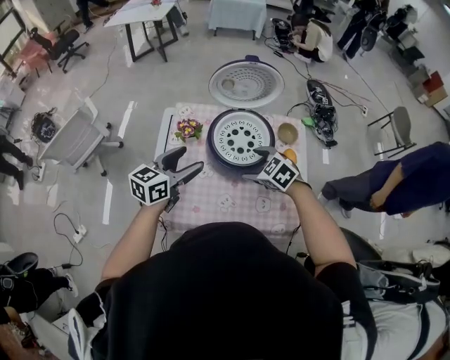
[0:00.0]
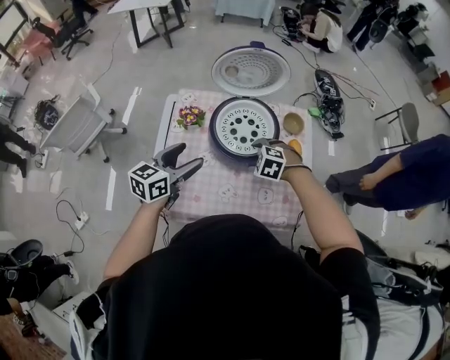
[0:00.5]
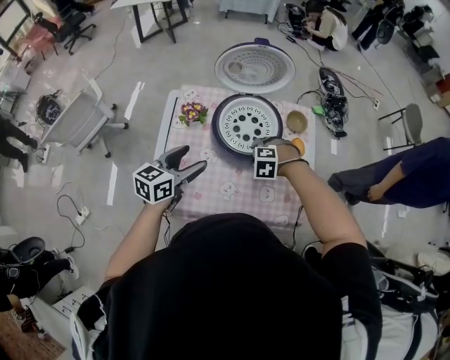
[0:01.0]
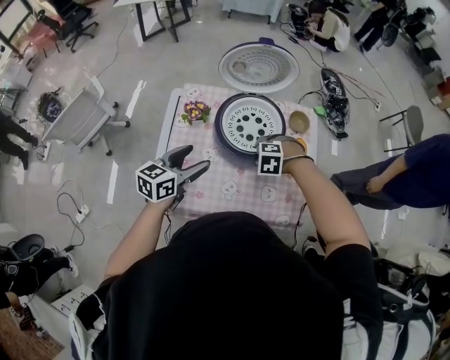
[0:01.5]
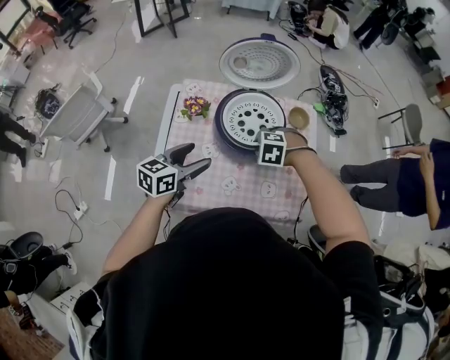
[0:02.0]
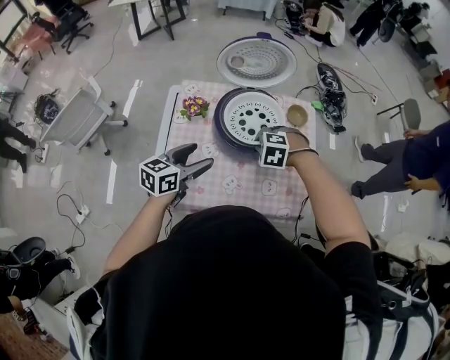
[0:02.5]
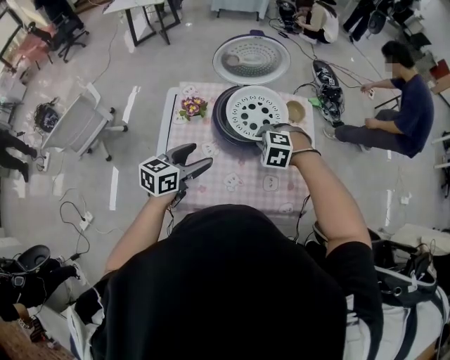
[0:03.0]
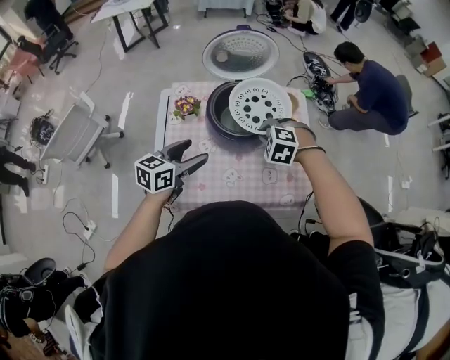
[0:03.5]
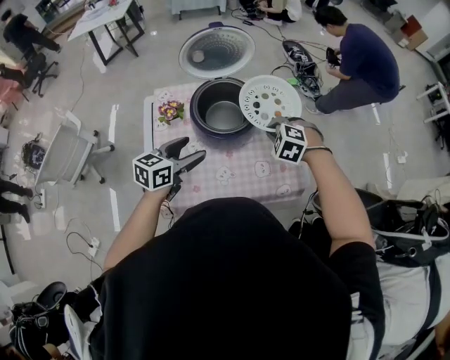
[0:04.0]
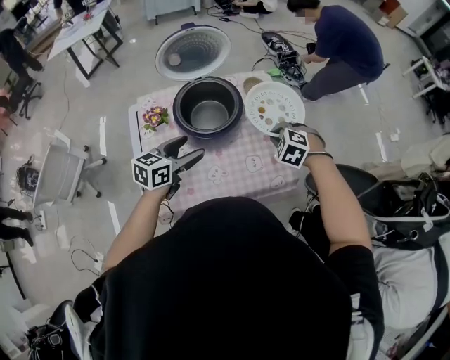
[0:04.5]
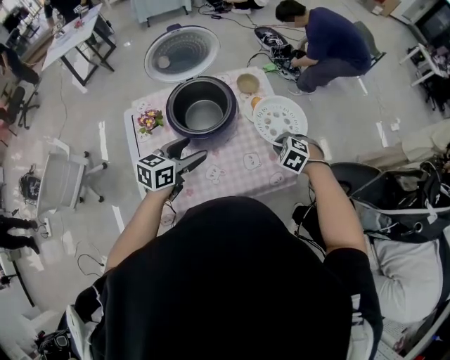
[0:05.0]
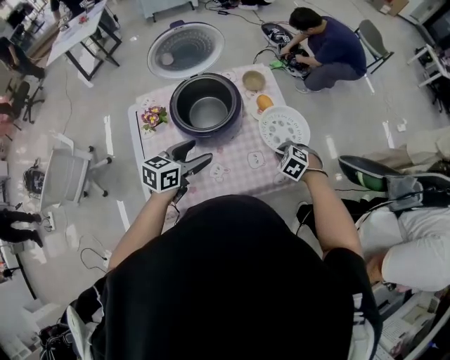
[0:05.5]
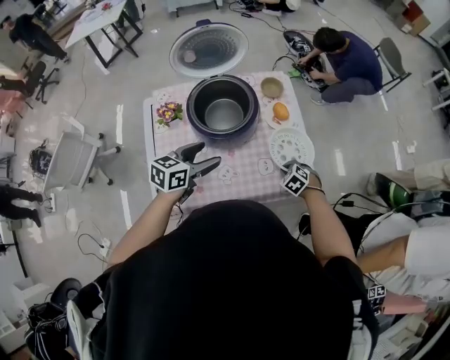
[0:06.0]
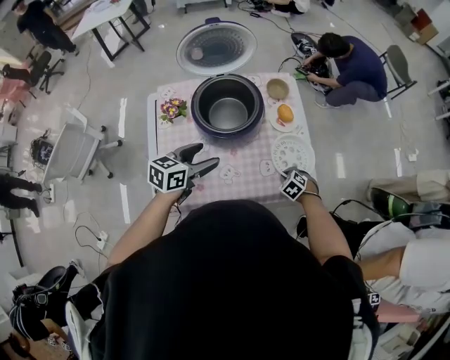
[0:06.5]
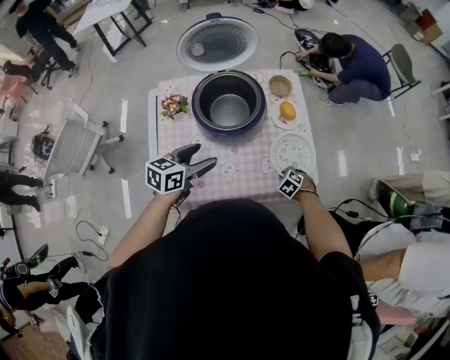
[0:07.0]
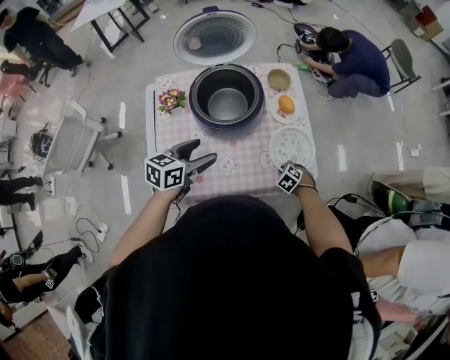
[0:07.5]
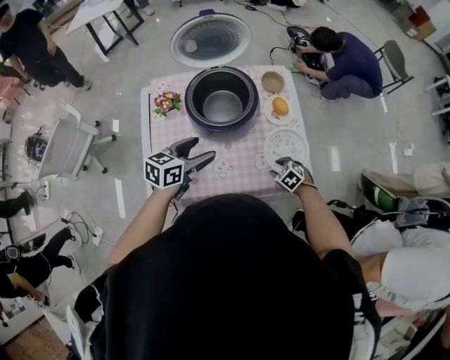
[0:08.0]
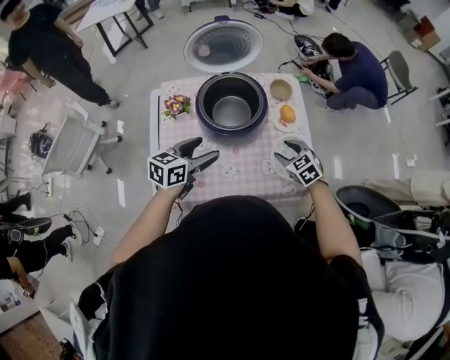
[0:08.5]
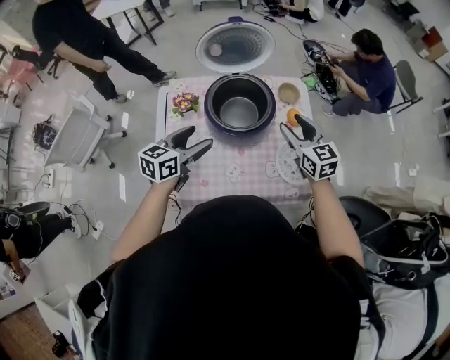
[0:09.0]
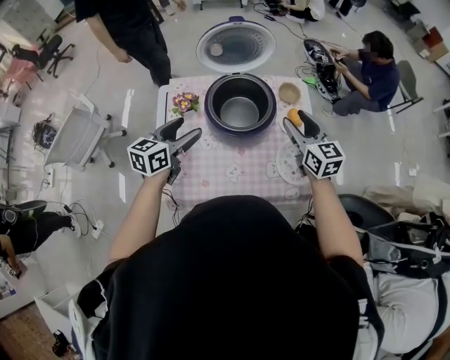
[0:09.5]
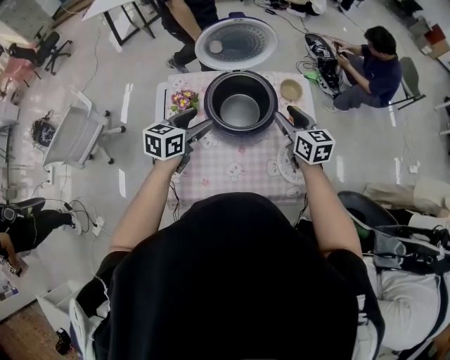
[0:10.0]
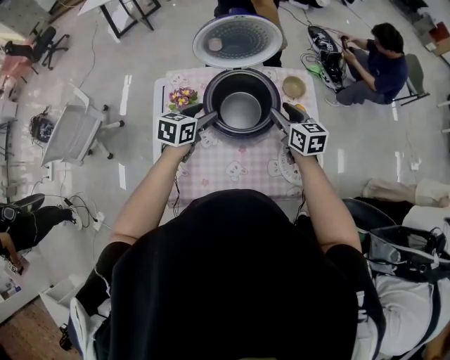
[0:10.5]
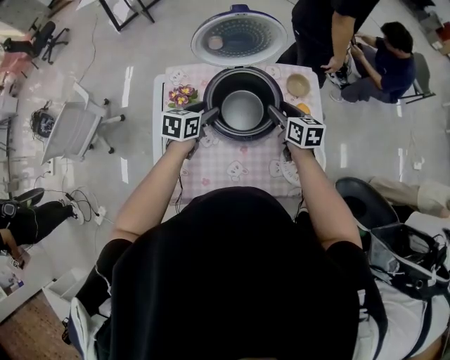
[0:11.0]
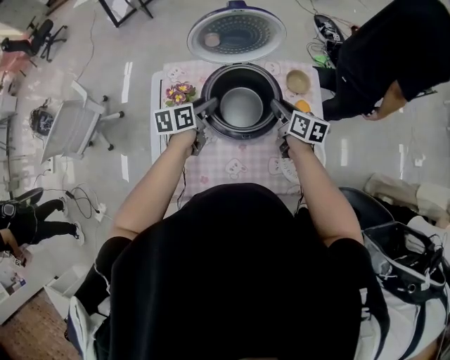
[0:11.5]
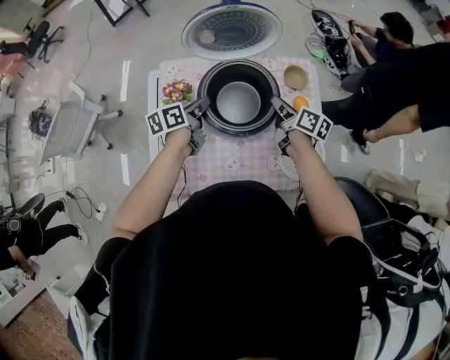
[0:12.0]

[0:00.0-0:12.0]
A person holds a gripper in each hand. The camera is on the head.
0:00.0 to 0:02.0: The grippers both shift downward by roughly 5 cm. The right gripper turns by some 40 degrees, and closes its fingers.
0:02.0 to 0:04.0: The right gripper ends up approximately 10 cm from where it was, and swivels approximately 30 degrees.
0:04.0 to 0:06.0: The left gripper is displaced to the right by roughly 5 cm, while the right gripper is displaced downward, to the right and backward by approximately 25 cm, and swivels about 30 degrees.
0:06.0 to 0:08.0: The right gripper moves about 10 cm downward and comes back.
0:08.0 to 0:10.0: The left gripper is displaced forward and to the left by roughly 10 cm. The right gripper moves upward and forward, about 30 cm, and angles its fingers upward, by about 50 degrees.
0:10.0 to 0:12.0: The grippers both shift downward and forward by about 10 cm. The right gripper twists approximately 40 degrees clockwise, seen from behind, and closes, while the left gripper swivels about 40 degrees, and closes.

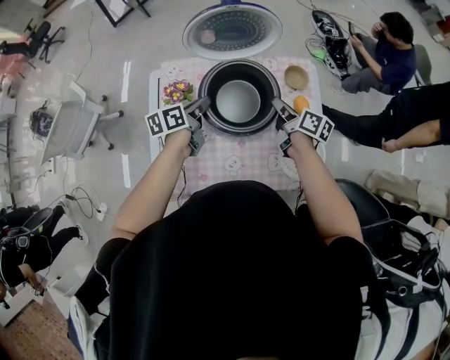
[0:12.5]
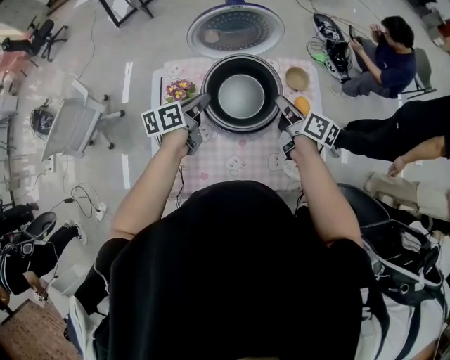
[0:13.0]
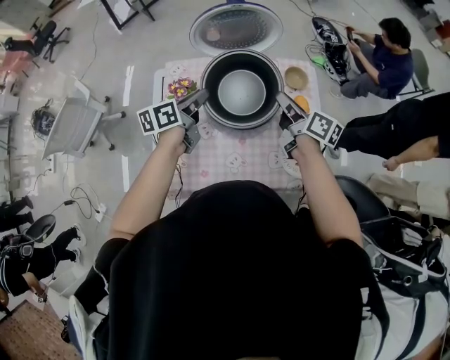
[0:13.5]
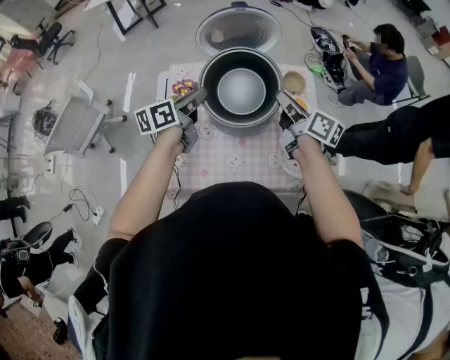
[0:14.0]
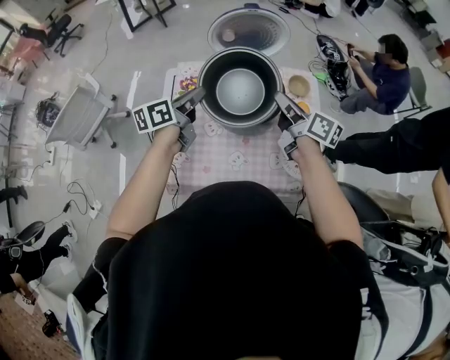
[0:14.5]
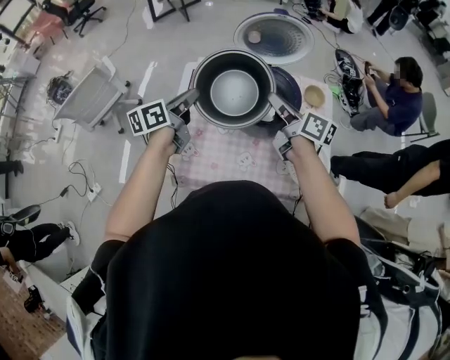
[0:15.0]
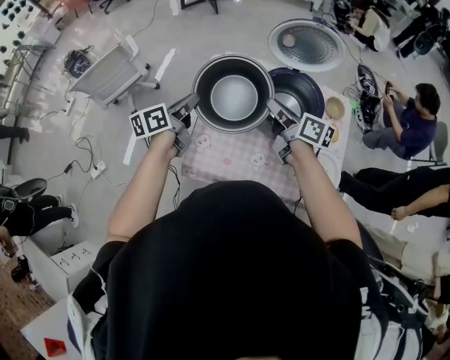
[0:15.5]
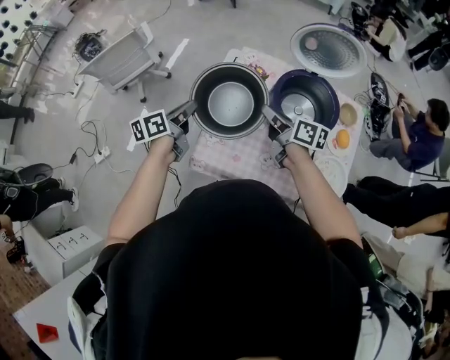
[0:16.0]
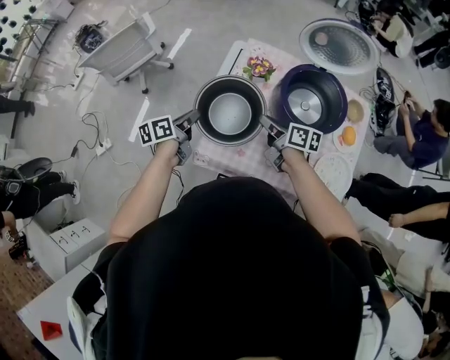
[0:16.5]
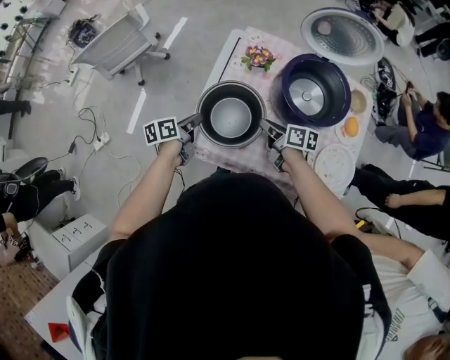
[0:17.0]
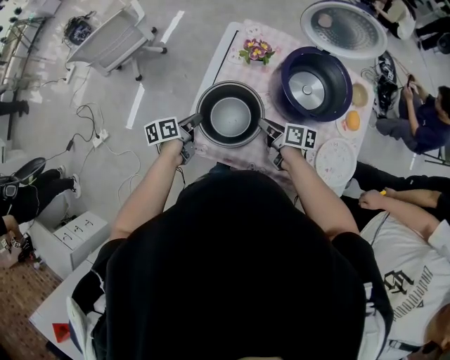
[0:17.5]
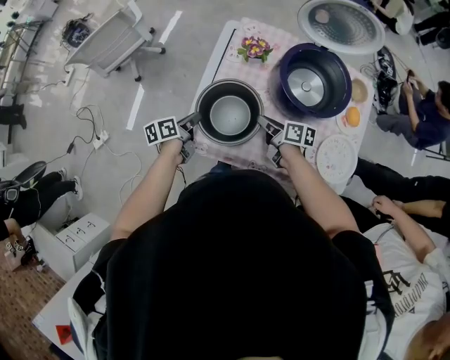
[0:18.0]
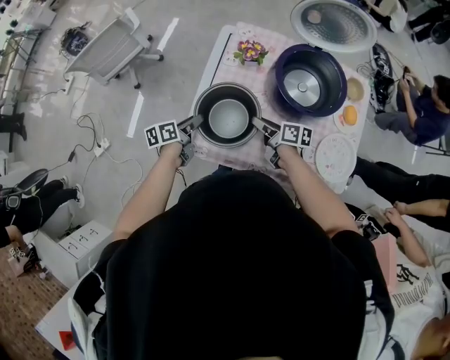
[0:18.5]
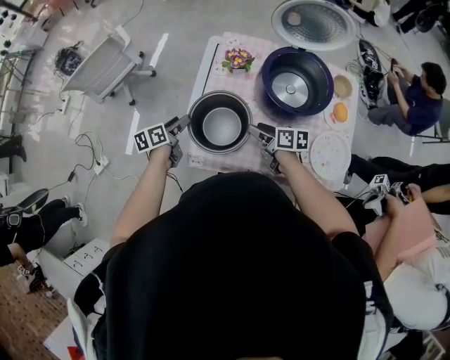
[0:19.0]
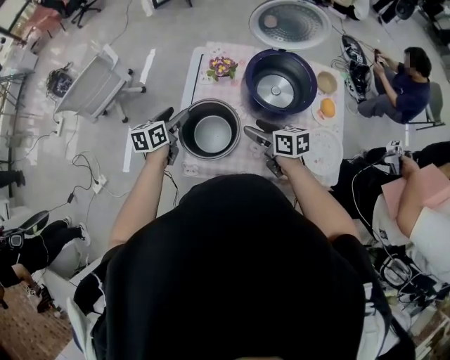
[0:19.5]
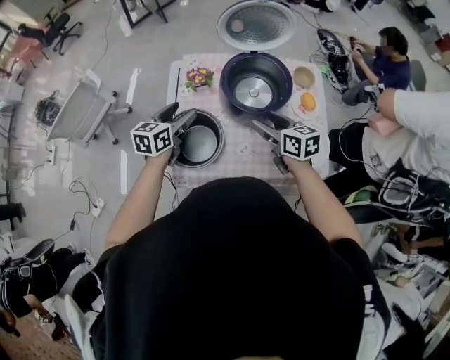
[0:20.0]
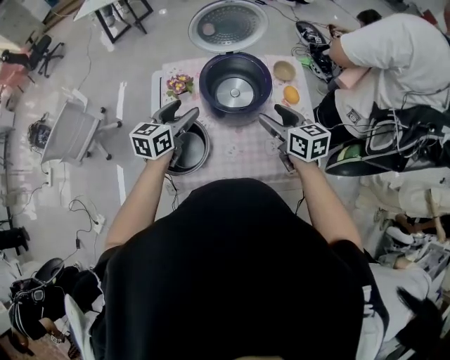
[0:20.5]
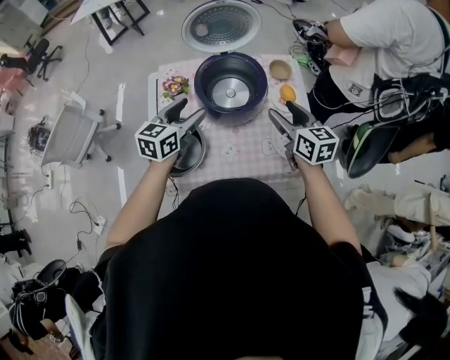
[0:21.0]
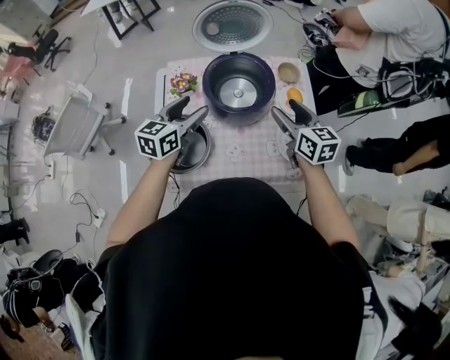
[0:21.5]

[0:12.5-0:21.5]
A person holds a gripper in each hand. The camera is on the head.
0:12.5 to 0:14.5: The two grippers go about 15 cm upward and backward.
0:14.5 to 0:17.0: The left gripper ends up roughly 35 cm from where it was, and changes its angle by some 30 degrees. Meanwhile the right gripper changes place by approximately 30 cm, and turns by about 40 degrees.
0:17.0 to 0:19.5: The left gripper moves upward and forward, approximately 10 cm, rotates some 30 degrees, and opens up; the right gripper travels upward by about 5 cm, and opens its fingers.
0:19.5 to 0:21.5: The left gripper moves some 25 cm, and swivels roughly 30 degrees; the right gripper ends up roughly 25 cm from where it was, and turns by roughly 40 degrees.

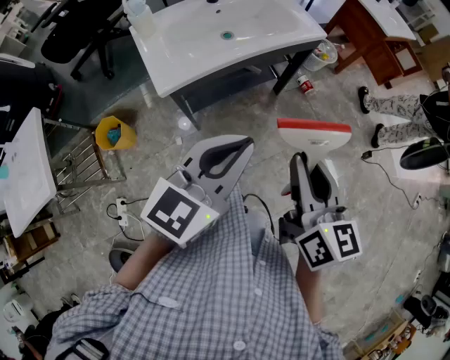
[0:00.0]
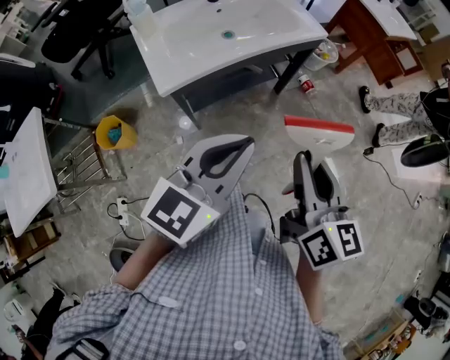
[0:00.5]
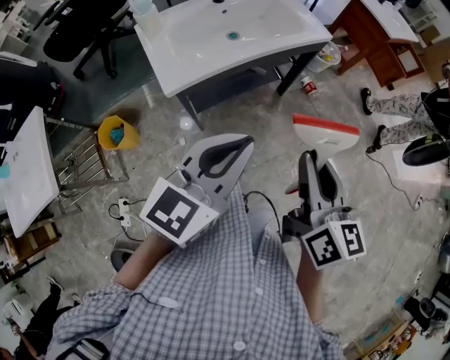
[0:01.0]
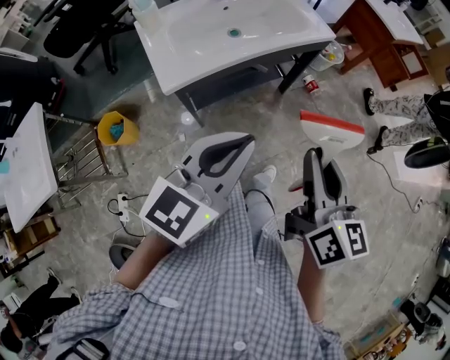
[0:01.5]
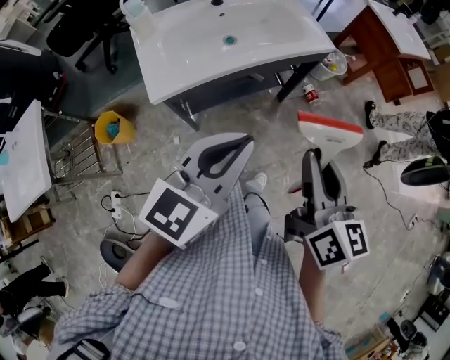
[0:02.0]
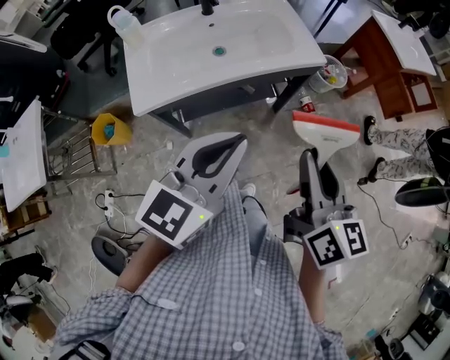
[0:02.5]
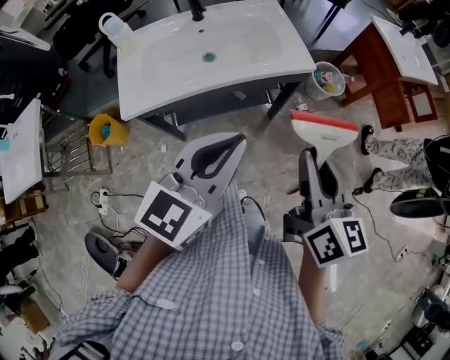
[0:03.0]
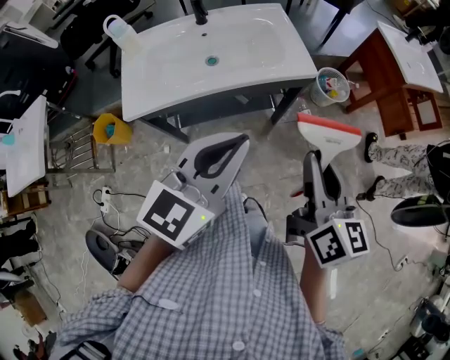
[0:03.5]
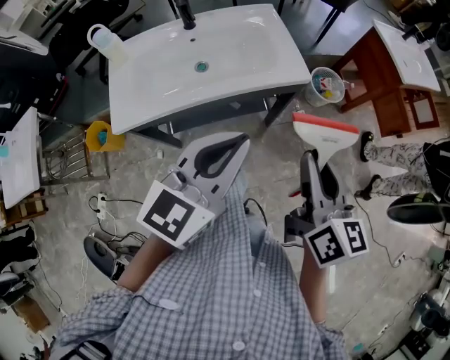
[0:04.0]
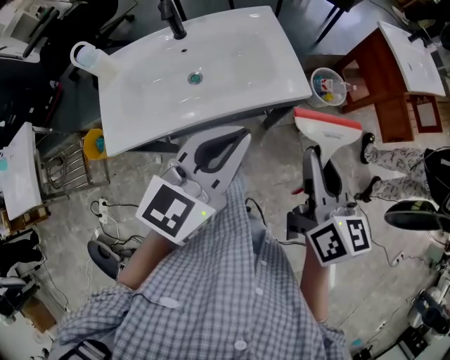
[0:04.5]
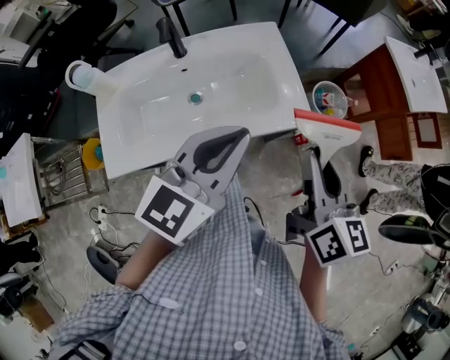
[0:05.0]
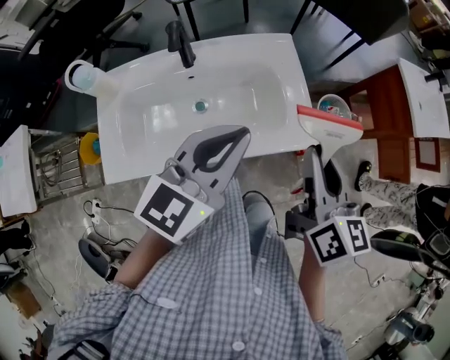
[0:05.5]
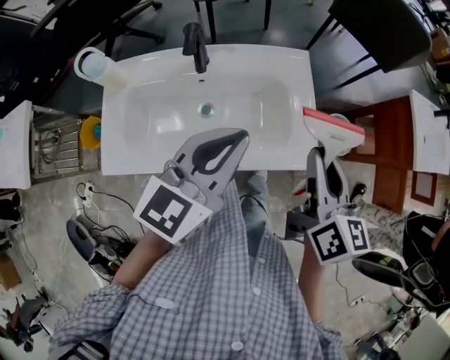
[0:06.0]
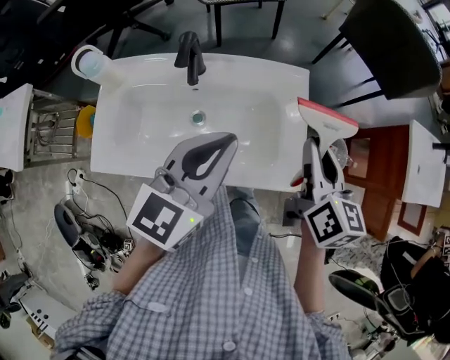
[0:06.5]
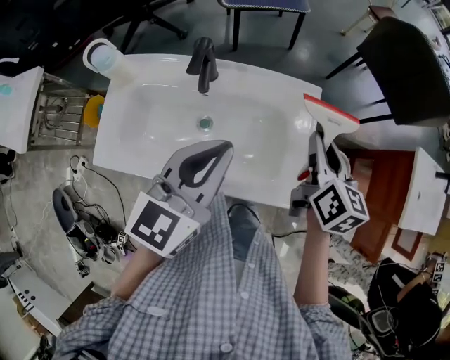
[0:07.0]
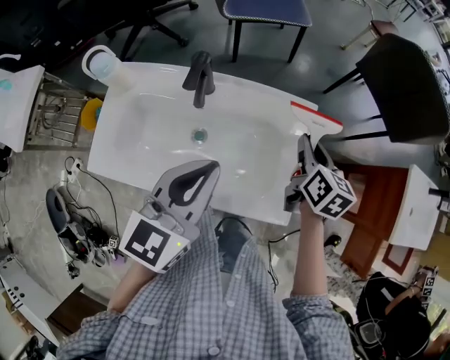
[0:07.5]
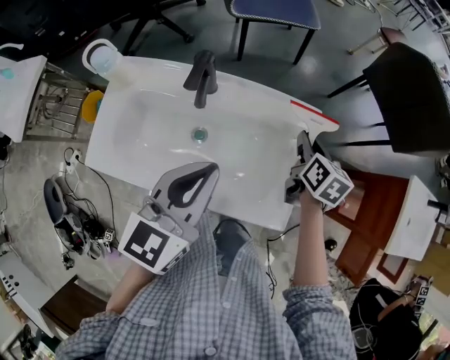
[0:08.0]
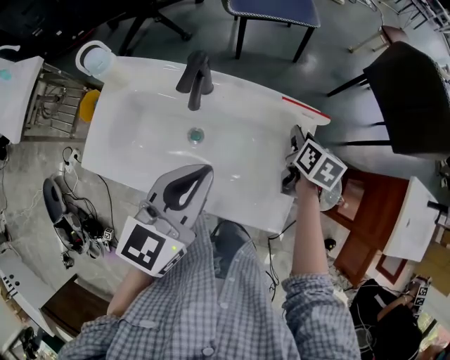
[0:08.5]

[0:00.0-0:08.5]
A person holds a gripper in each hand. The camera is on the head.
0:00.0 to 0:02.0: Both grippers move forward, roughly 10 cm.
0:02.0 to 0:04.0: The grippers both shift forward and to the right by about 20 cm.
0:04.0 to 0:06.5: The two grippers go approximately 35 cm forward. The left gripper turns by some 20 degrees.
0:06.5 to 0:08.5: The left gripper changes place by some 5 cm. The right gripper travels forward and downward by about 25 cm, and turns by approximately 30 degrees.
